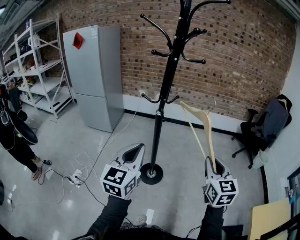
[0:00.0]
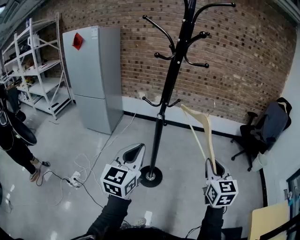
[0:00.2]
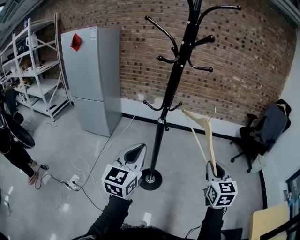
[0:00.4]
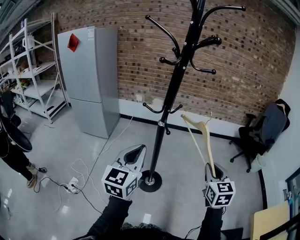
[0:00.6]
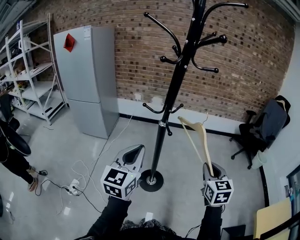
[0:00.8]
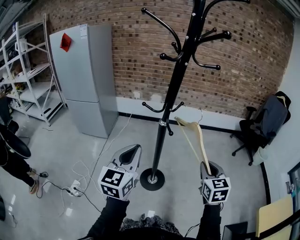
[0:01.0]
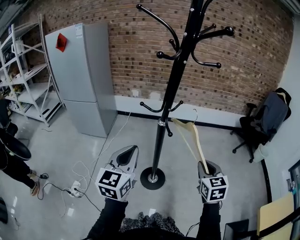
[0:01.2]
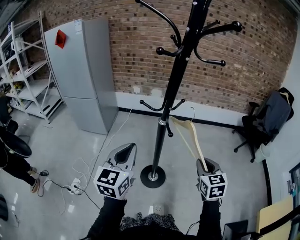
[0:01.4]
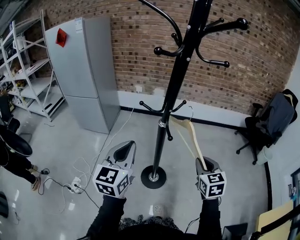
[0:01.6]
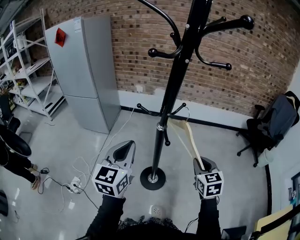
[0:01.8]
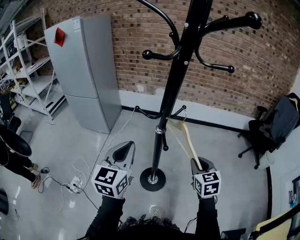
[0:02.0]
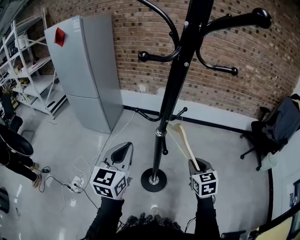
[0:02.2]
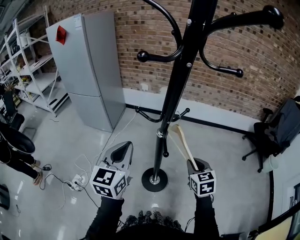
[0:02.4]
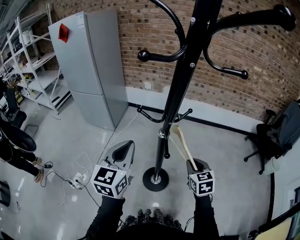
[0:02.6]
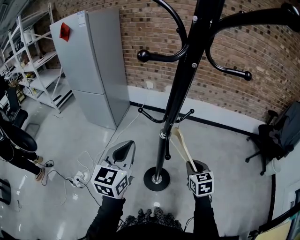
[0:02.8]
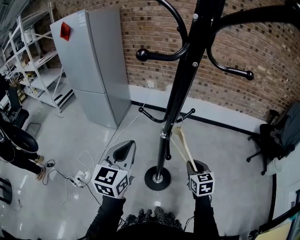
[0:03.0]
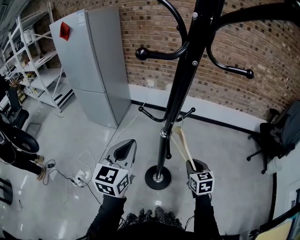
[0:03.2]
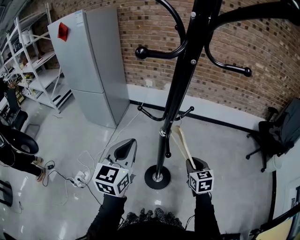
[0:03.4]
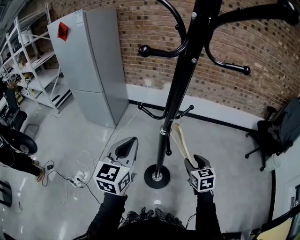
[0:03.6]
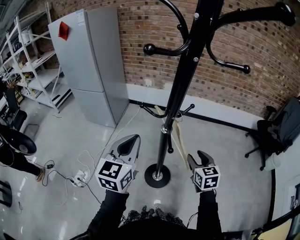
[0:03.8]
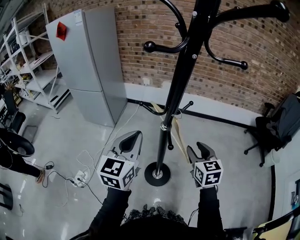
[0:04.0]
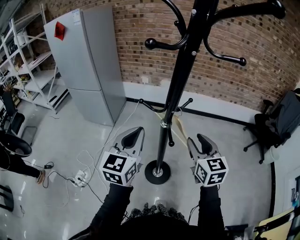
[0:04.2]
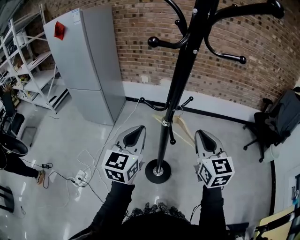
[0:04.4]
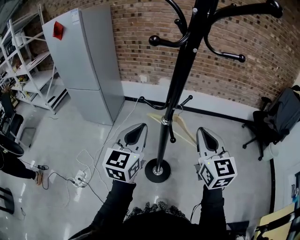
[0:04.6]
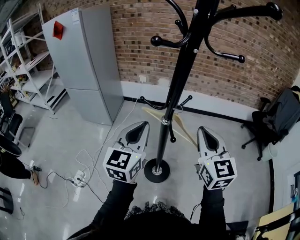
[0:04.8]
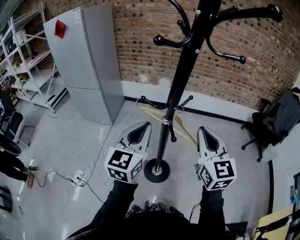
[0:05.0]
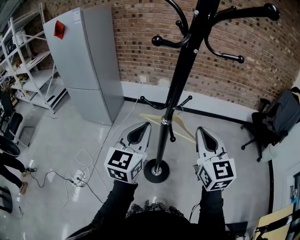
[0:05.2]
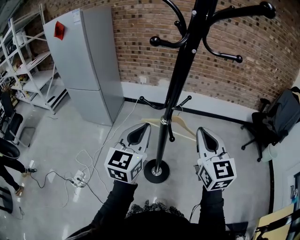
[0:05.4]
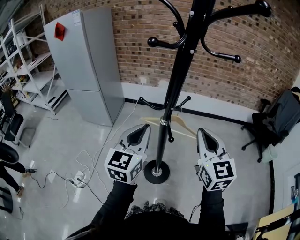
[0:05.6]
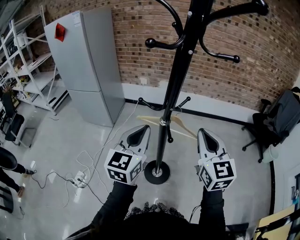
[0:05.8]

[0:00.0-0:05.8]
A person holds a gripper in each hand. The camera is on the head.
0:00.0 to 0:01.4: The left gripper heads forward and to the left, covering some 15 cm. Meanwhile the right gripper travels forward, downward and to the left by approximately 20 cm.
0:01.4 to 0:02.8: The left gripper goes some 10 cm forward; the right gripper is displaced forward and downward by roughly 15 cm.
0:02.8 to 0:04.4: The right gripper goes approximately 20 cm upward, rotates approximately 30 degrees, and opens, then closes again.
0:04.4 to 0:05.8: The grippers move only a little.

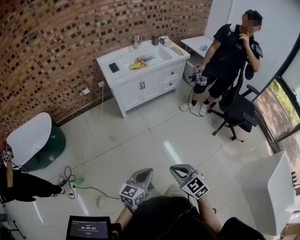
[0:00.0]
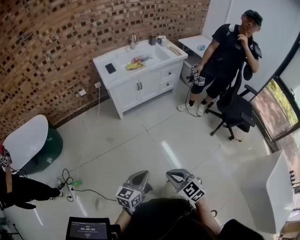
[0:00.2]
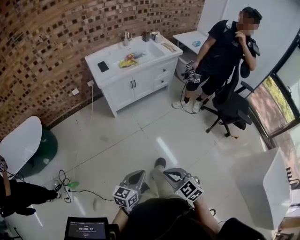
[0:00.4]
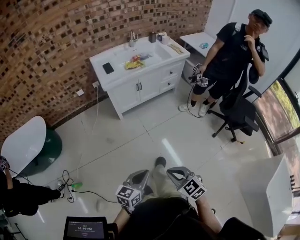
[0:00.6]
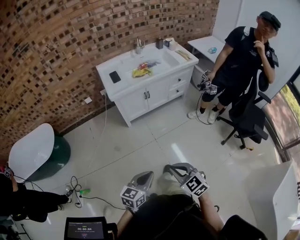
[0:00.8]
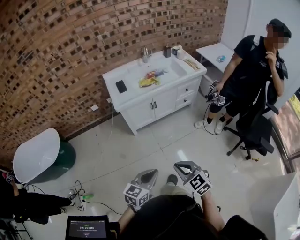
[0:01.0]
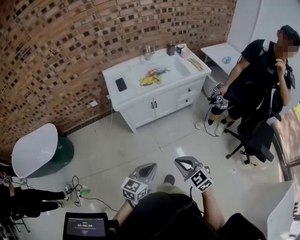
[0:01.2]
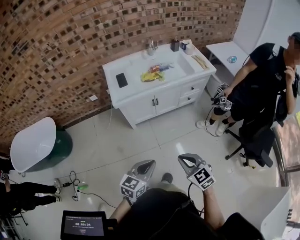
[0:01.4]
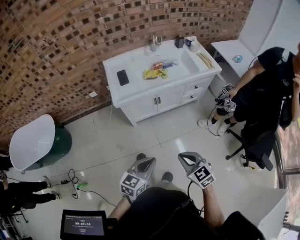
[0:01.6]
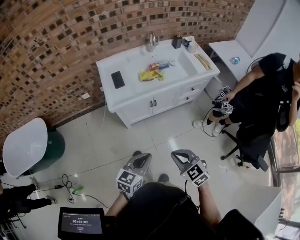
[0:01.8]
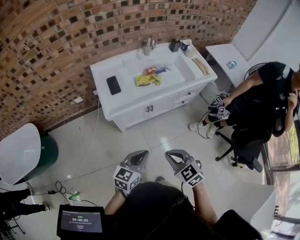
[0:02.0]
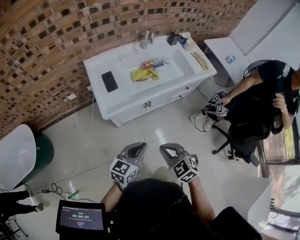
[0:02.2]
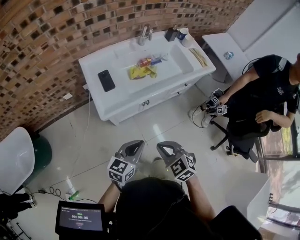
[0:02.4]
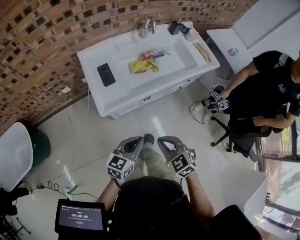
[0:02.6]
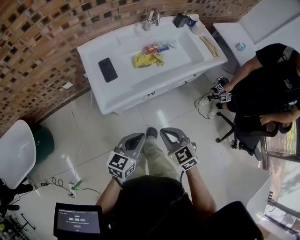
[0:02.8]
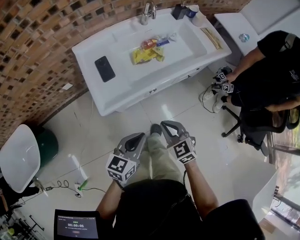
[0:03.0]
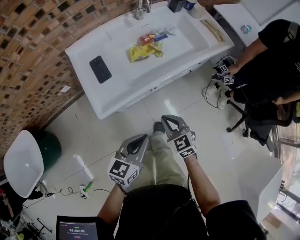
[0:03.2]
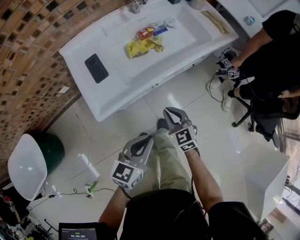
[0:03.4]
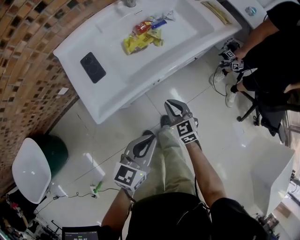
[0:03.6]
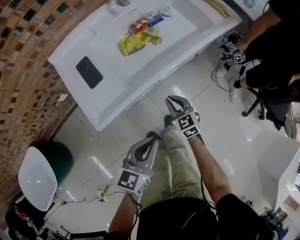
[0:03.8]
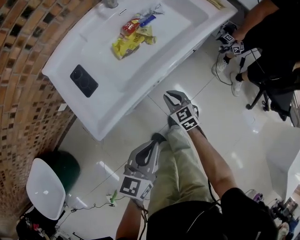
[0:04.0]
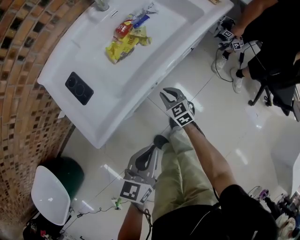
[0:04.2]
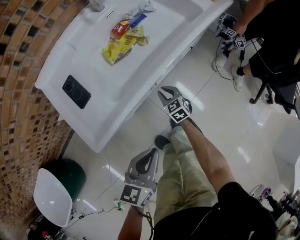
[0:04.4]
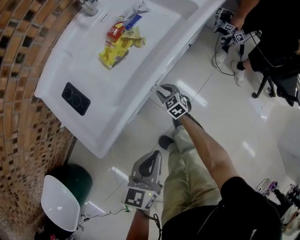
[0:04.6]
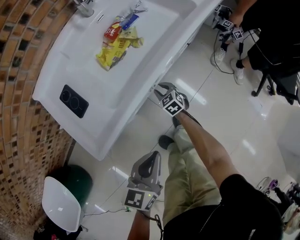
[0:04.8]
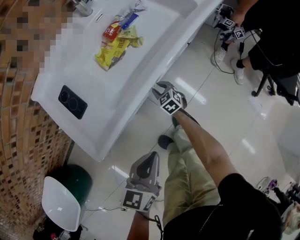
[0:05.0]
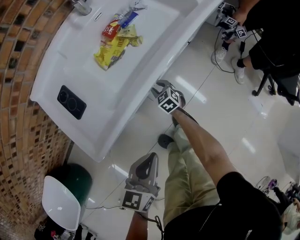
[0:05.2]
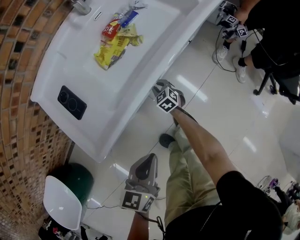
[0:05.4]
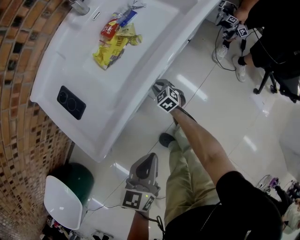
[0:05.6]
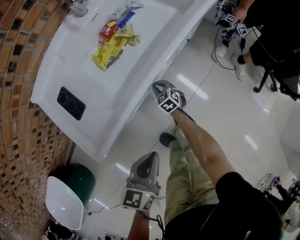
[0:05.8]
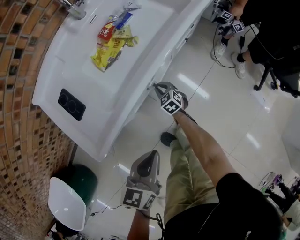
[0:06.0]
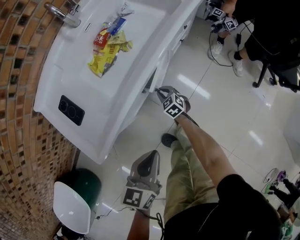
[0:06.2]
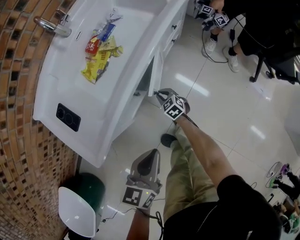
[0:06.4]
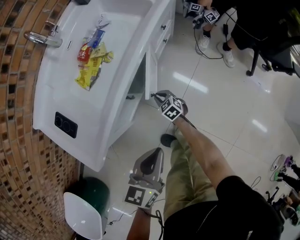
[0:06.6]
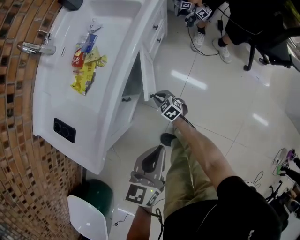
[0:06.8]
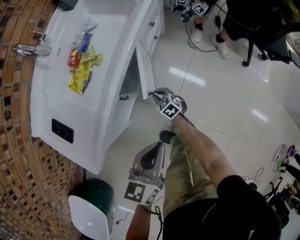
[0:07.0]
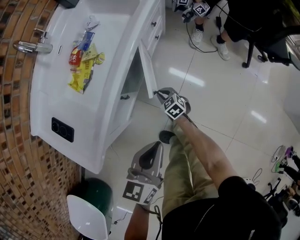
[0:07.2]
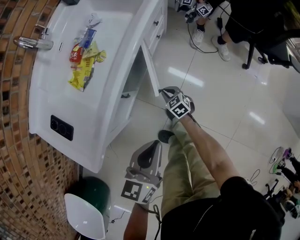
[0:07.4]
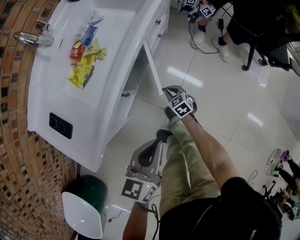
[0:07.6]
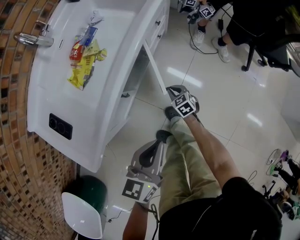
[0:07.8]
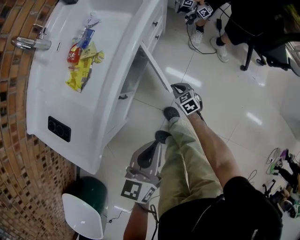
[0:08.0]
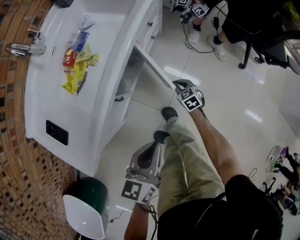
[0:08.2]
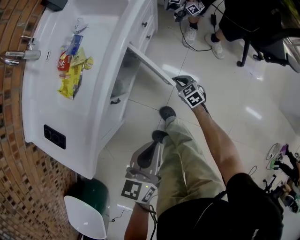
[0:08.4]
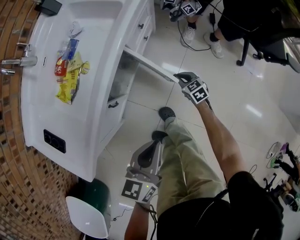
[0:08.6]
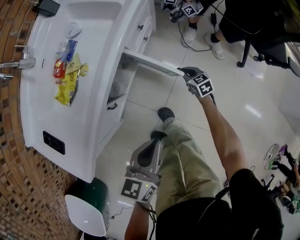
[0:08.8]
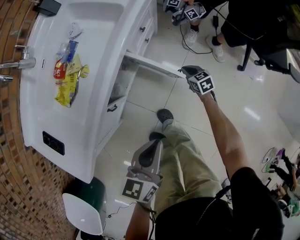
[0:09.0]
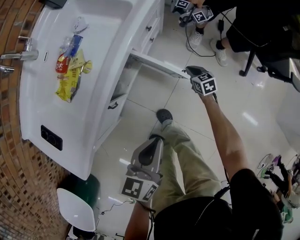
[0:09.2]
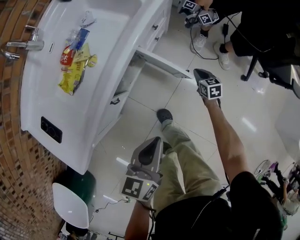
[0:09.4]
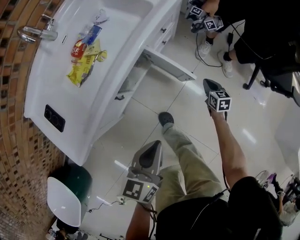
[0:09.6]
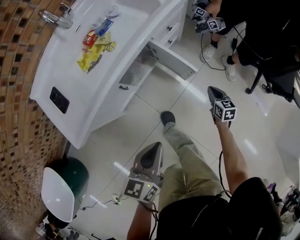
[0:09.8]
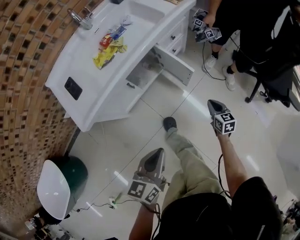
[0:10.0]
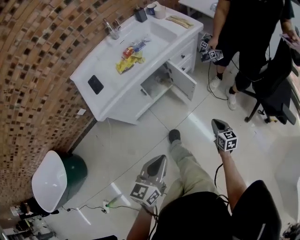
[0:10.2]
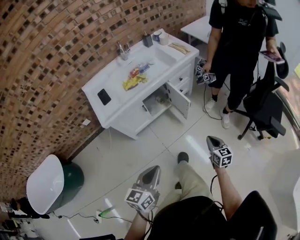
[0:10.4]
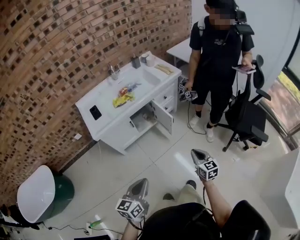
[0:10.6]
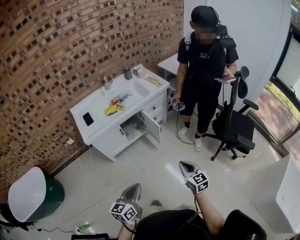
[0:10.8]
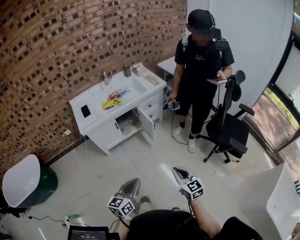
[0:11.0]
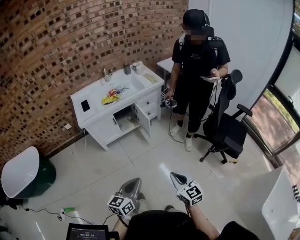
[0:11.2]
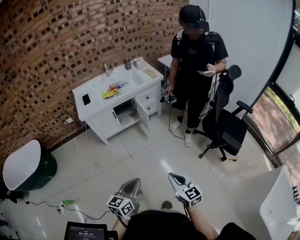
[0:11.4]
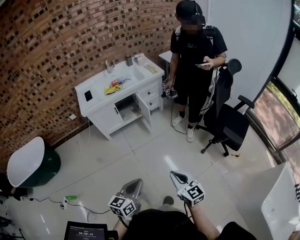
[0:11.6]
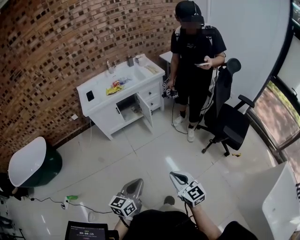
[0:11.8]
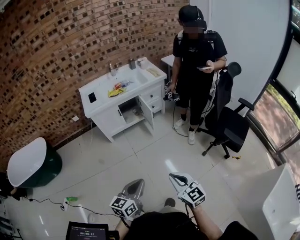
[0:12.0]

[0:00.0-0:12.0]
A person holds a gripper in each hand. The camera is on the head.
0:00.0 to 0:01.6: The pair of grippers is taken forward, approximately 40 cm.
0:01.6 to 0:03.0: The grippers both shift forward and to the left by approximately 30 cm.
0:03.0 to 0:04.4: The right gripper moves downward and forward, some 35 cm, and swivels roughly 20 degrees, while the left gripper moves downward, about 10 cm.
0:04.4 to 0:06.0: The right gripper shifts approximately 5 cm downward.
0:06.0 to 0:07.6: The right gripper travels to the right by approximately 15 cm. The left gripper moves to the right, roughly 10 cm.
0:07.6 to 0:09.0: The left gripper moves to the right and forward, approximately 10 cm; the right gripper travels to the right and forward by approximately 25 cm.
0:09.0 to 0:10.4: The two grippers go approximately 40 cm backward and upward. The right gripper swivels approximately 20 degrees; the left gripper turns by approximately 30 degrees.
0:10.4 to 0:12.0: The two grippers travel together, backward and to the right, roughly 40 cm. The right gripper travels upward by about 25 cm, and swivels about 40 degrees.

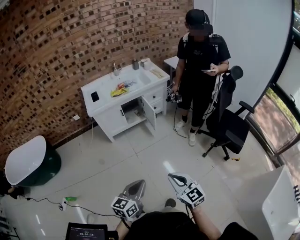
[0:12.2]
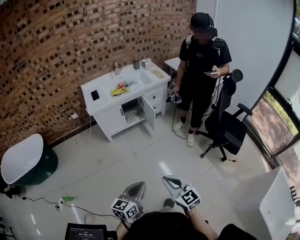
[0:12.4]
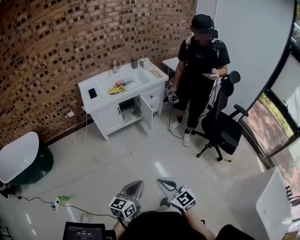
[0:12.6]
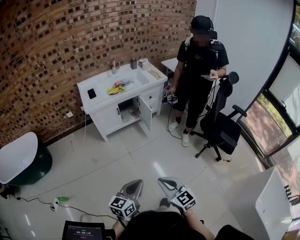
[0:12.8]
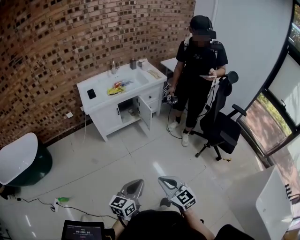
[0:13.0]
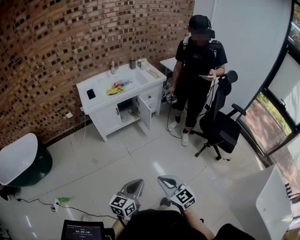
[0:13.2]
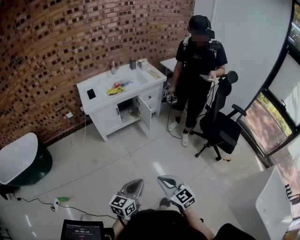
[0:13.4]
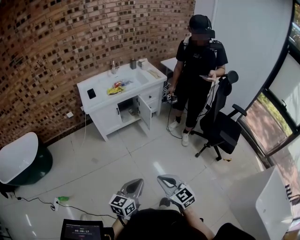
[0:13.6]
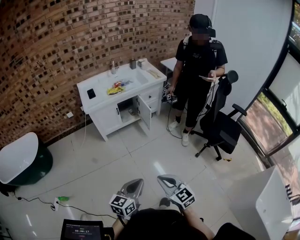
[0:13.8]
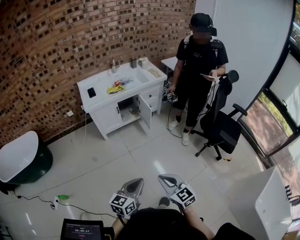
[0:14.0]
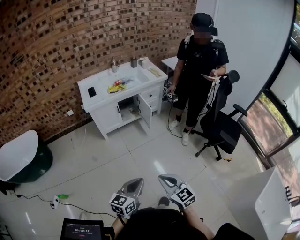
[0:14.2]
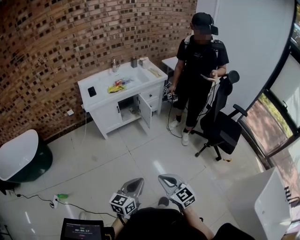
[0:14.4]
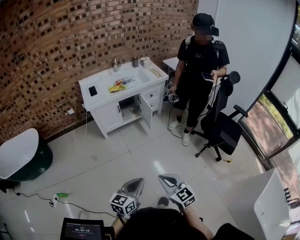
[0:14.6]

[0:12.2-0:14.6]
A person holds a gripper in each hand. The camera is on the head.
0:12.2 to 0:13.4: The right gripper goes roughly 10 cm to the left.
0:13.4 to 0:14.6: The grippers move only a little.

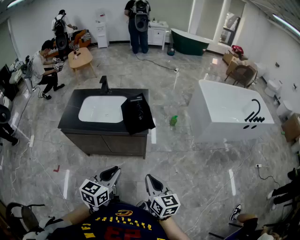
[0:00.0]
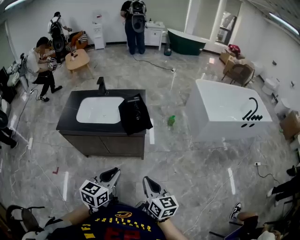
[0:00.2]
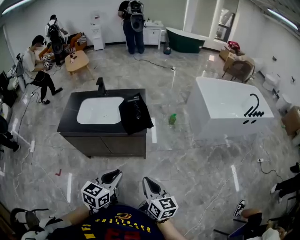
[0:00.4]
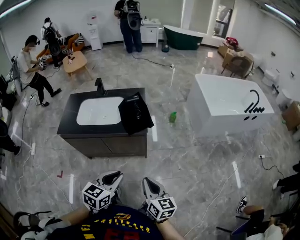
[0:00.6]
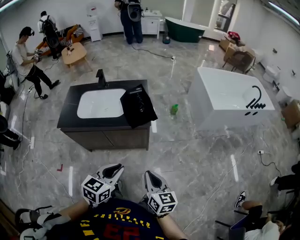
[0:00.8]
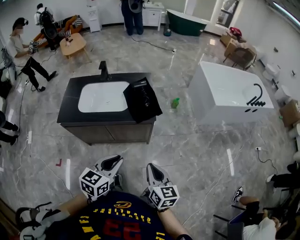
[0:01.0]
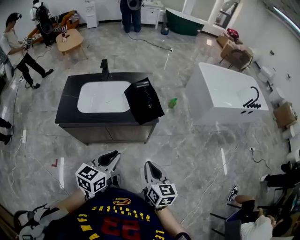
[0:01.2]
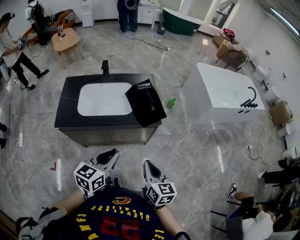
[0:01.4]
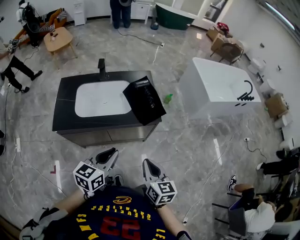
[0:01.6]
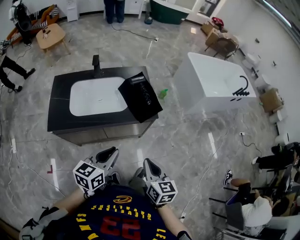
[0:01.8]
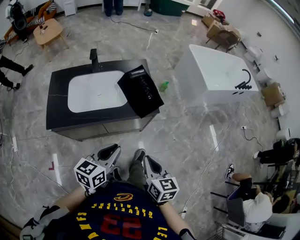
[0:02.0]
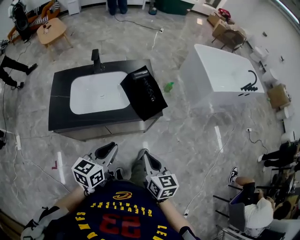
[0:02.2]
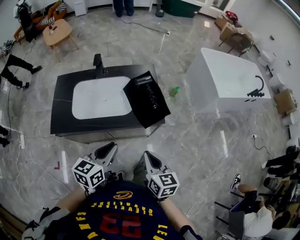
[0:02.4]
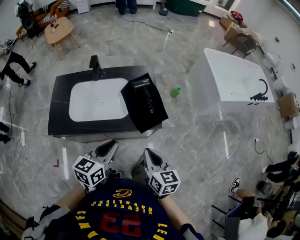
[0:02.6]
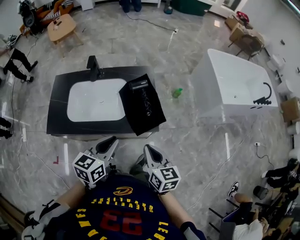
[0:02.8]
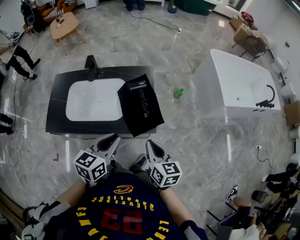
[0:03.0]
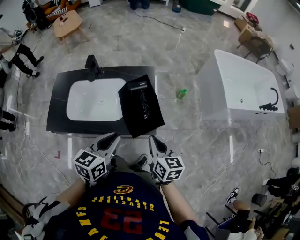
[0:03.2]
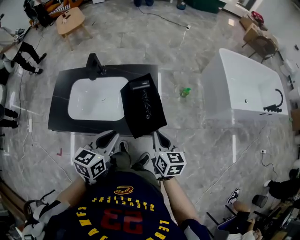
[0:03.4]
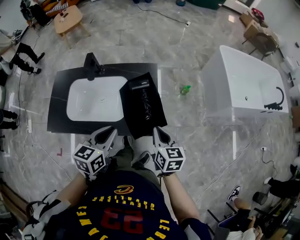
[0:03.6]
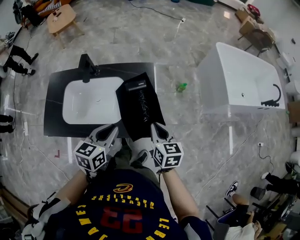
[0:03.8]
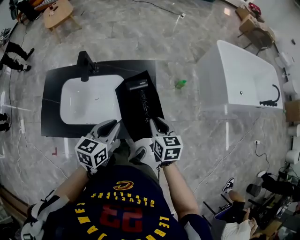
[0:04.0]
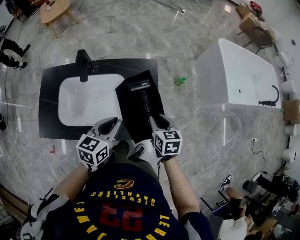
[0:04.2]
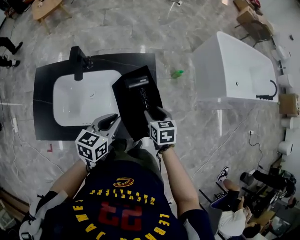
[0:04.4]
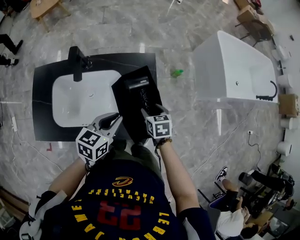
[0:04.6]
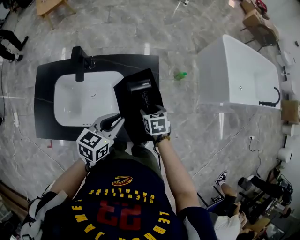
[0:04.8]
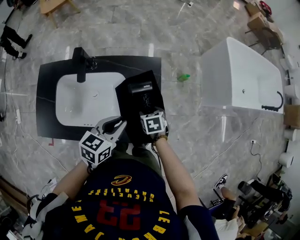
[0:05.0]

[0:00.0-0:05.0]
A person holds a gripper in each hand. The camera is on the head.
0:00.0 to 0:01.6: The left gripper moves to the left and forward, about 20 cm; the right gripper is displaced to the left by about 20 cm.
0:01.6 to 0:03.4: Both grippers move forward, approximately 25 cm.
0:03.4 to 0:05.0: The left gripper goes roughly 20 cm forward and downward. The right gripper goes roughly 25 cm downward, forward and to the left, tilts its fingers about 40 degrees downward, and opens up.
